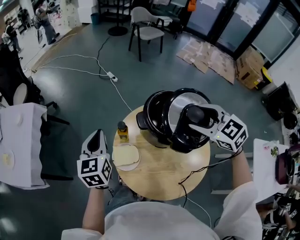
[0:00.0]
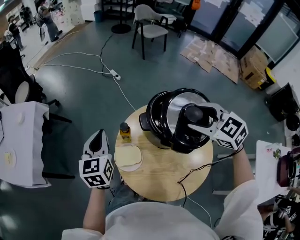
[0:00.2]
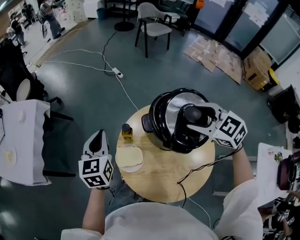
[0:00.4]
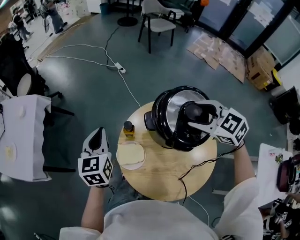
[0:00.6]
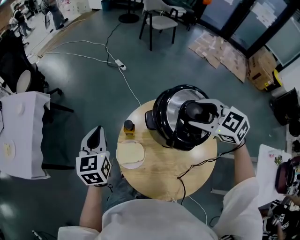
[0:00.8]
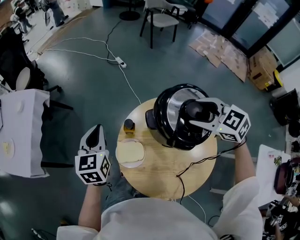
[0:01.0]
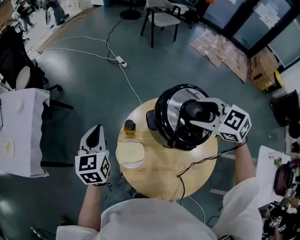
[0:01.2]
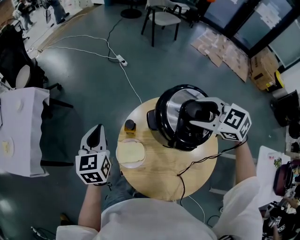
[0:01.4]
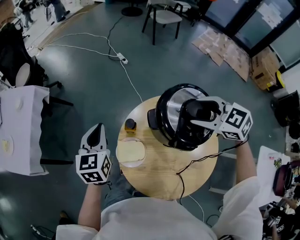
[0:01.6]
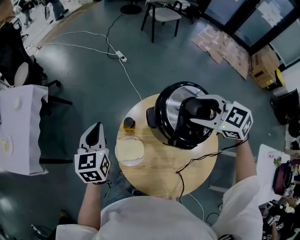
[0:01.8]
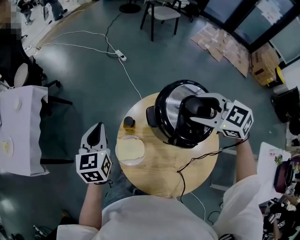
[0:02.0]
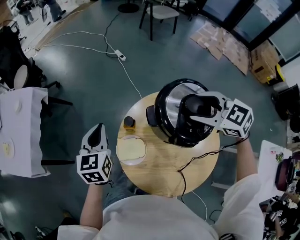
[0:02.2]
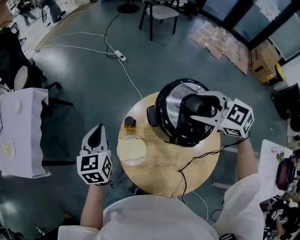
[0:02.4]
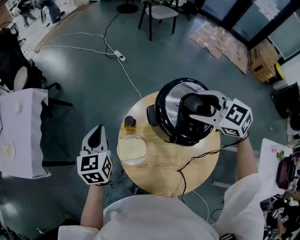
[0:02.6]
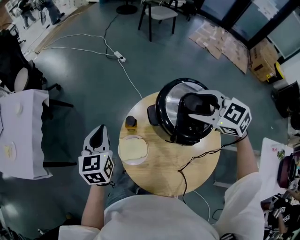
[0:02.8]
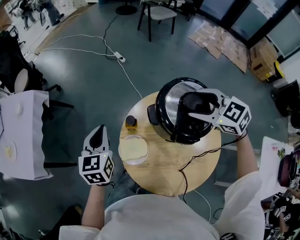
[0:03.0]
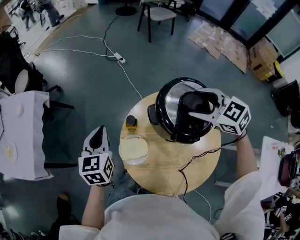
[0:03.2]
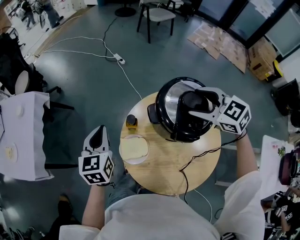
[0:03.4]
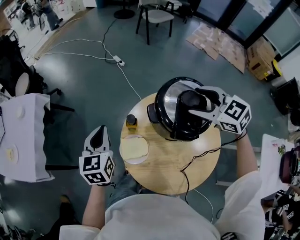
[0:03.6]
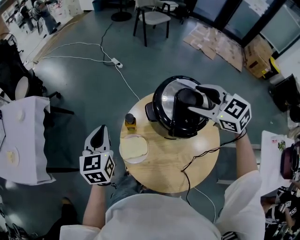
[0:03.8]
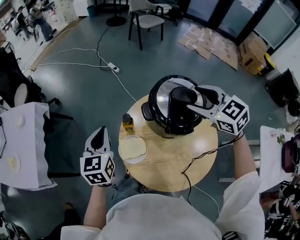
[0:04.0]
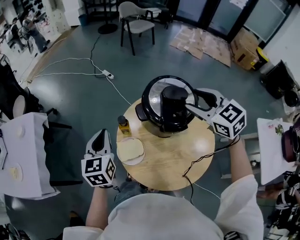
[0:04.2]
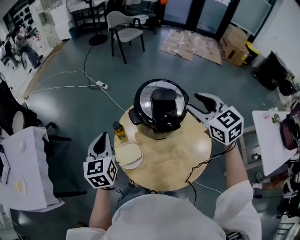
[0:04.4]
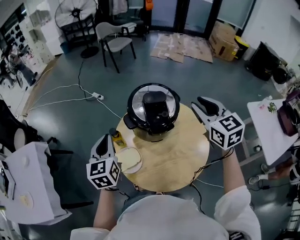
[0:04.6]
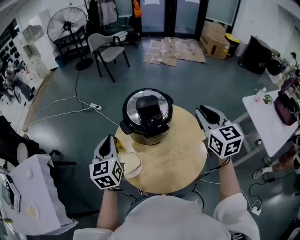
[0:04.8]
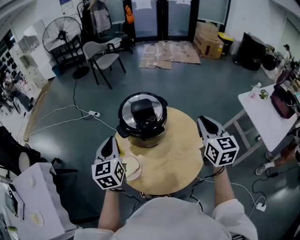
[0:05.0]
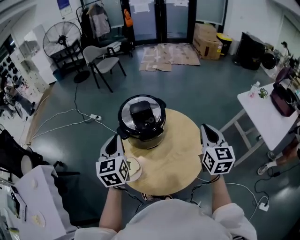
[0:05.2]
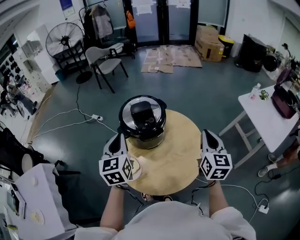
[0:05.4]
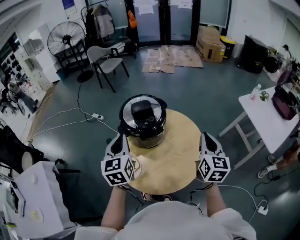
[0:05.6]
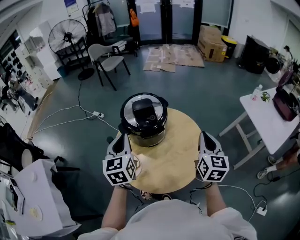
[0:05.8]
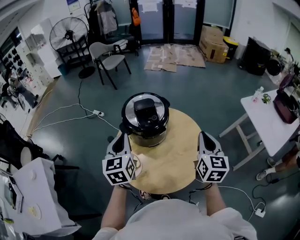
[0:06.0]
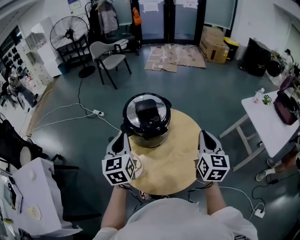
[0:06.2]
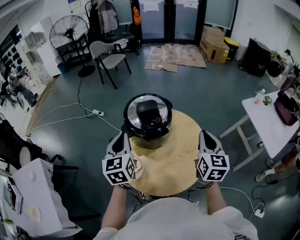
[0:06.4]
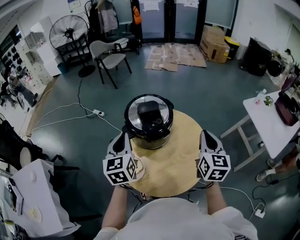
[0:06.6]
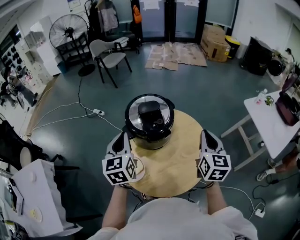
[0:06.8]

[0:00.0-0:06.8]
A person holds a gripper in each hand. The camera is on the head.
0:00.0 to 0:01.4: The right gripper is displaced forward by some 5 cm.
0:01.4 to 0:02.8: The grippers make only small movements.
0:02.8 to 0:04.0: The right gripper moves about 5 cm.
0:04.0 to 0:05.4: The left gripper ends up about 20 cm from where it was, and rotates about 20 degrees. The right gripper ends up some 30 cm from where it was, rotates about 80 degrees, and closes its fingers.
0:05.4 to 0:06.8: The grippers make only small movements.

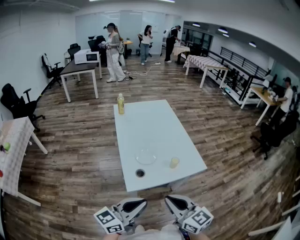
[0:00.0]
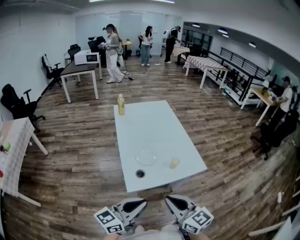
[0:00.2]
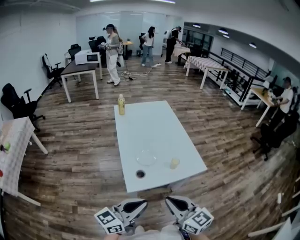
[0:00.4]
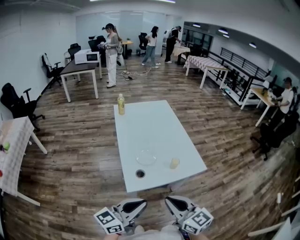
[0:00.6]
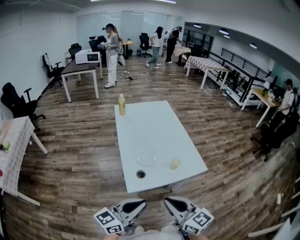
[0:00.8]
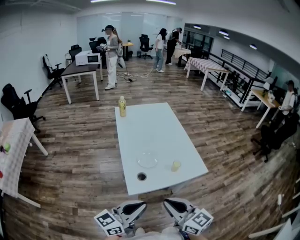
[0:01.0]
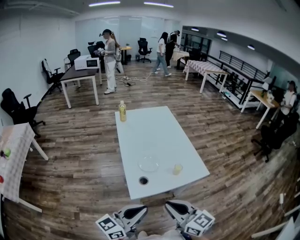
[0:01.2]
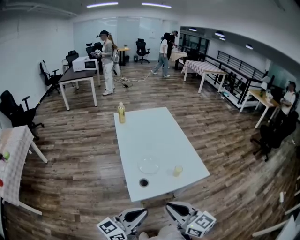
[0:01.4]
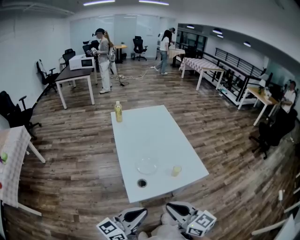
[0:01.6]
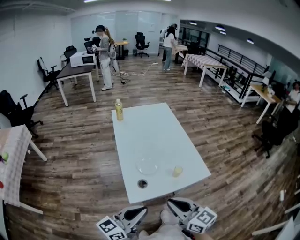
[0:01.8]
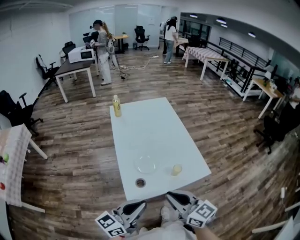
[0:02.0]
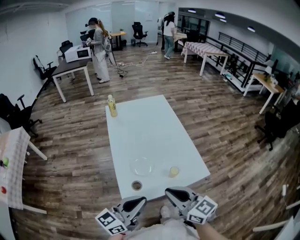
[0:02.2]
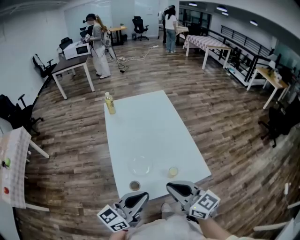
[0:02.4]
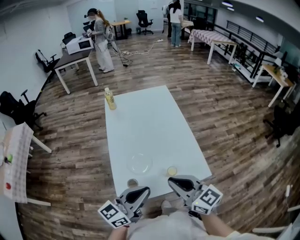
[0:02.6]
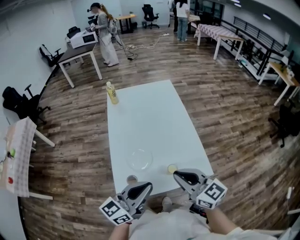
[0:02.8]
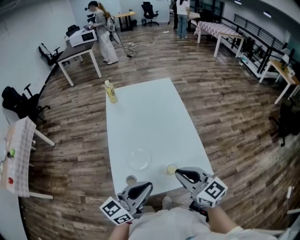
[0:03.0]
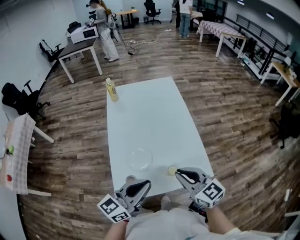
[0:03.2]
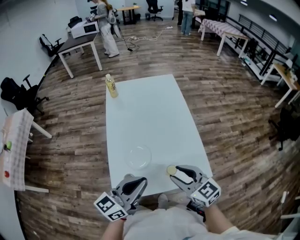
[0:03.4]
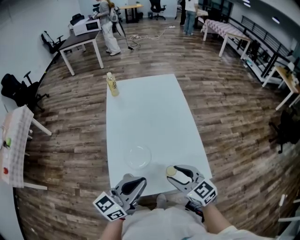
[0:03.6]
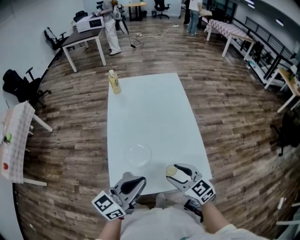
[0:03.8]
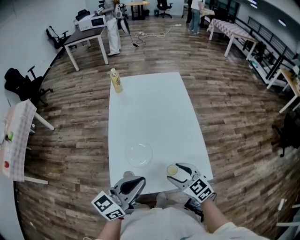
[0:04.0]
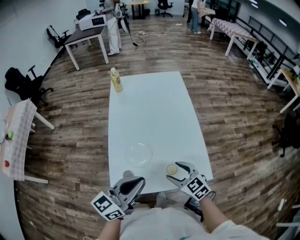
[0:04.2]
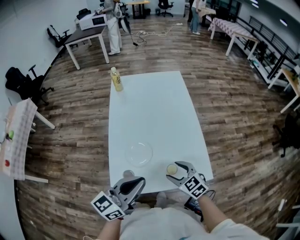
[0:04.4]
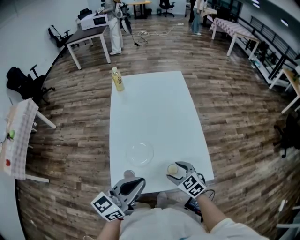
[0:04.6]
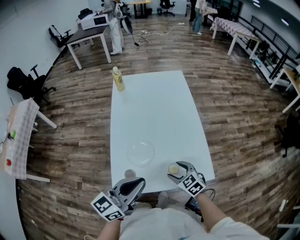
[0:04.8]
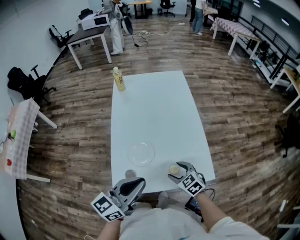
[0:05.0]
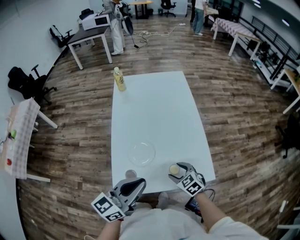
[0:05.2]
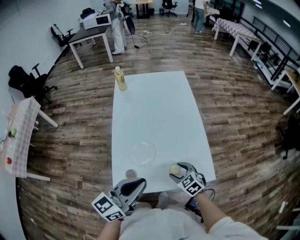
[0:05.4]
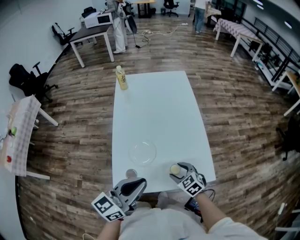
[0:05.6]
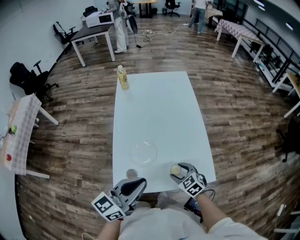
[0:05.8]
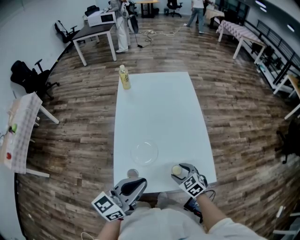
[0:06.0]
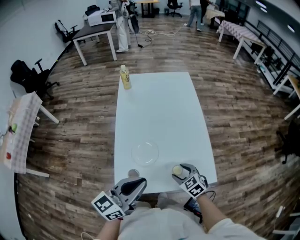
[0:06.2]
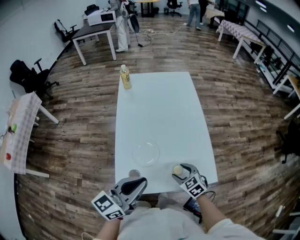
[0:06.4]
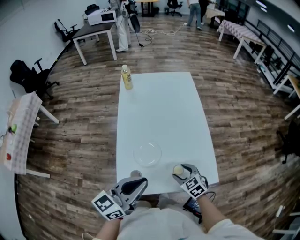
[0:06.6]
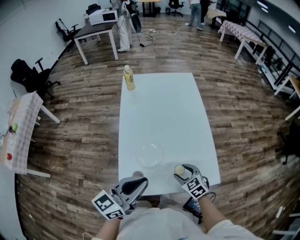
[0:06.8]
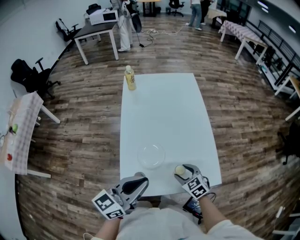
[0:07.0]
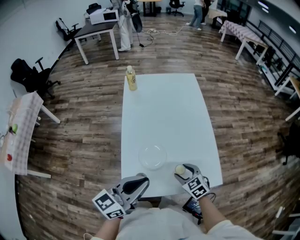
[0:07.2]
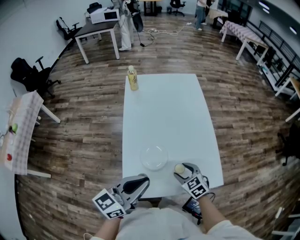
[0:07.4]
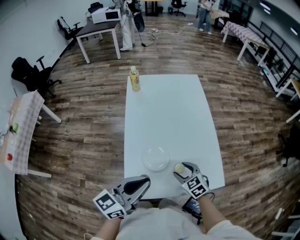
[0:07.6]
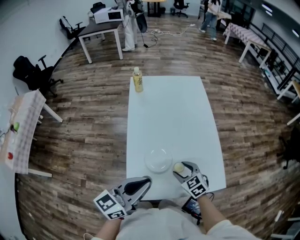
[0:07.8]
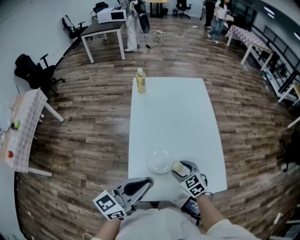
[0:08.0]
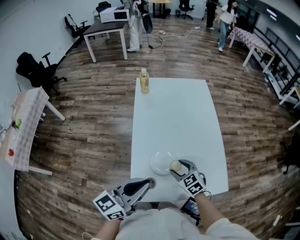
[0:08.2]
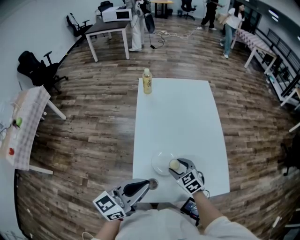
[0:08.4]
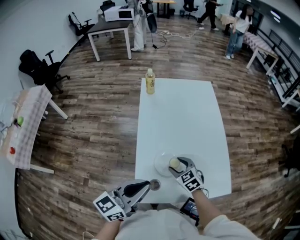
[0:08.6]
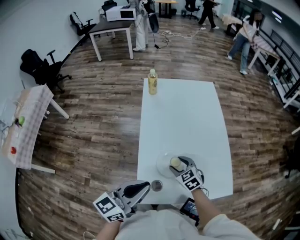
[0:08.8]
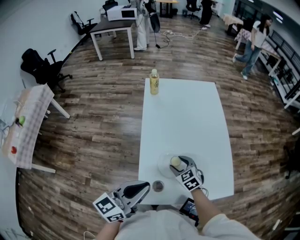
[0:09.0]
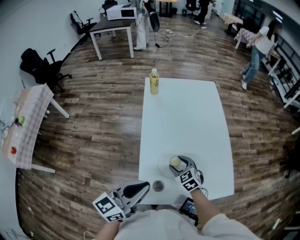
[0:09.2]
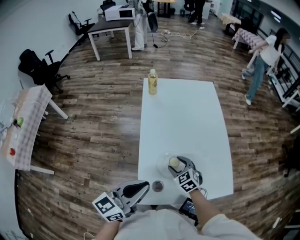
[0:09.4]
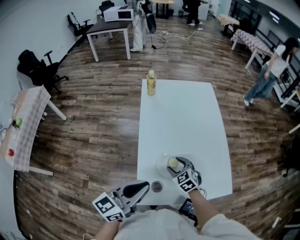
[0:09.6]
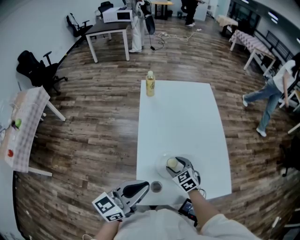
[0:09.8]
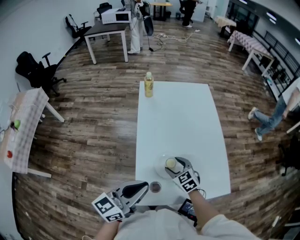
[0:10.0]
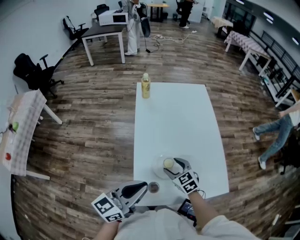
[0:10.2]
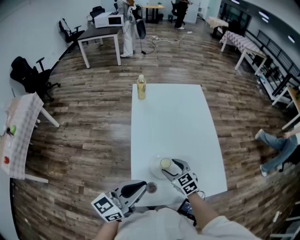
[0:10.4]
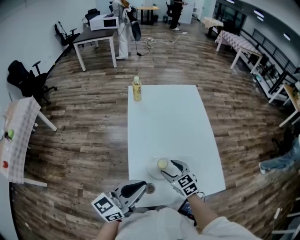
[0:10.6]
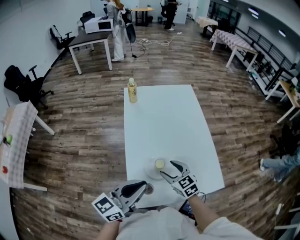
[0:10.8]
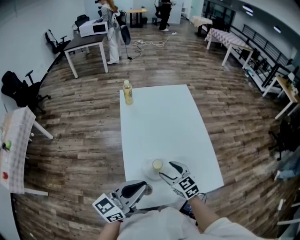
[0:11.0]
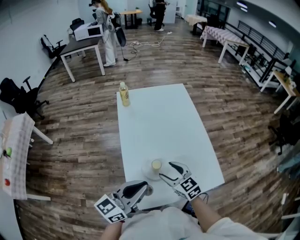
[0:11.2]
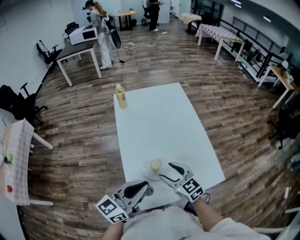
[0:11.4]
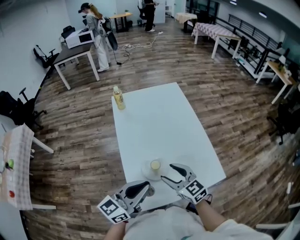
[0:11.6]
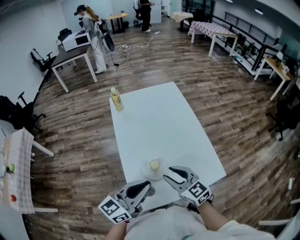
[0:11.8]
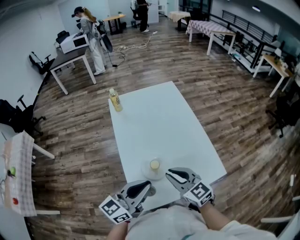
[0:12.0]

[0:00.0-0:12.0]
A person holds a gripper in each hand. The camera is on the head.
0:00.0 to 0:01.6: The grippers stay close to where they were, moving slightly.
0:01.6 to 0:03.0: The grippers both shift forward and to the right by approximately 25 cm.
0:03.0 to 0:04.4: The right gripper travels downward by about 15 cm, rotates approximately 30 degrees, and opens up.
0:04.4 to 0:06.0: The right gripper travels downward by roughly 5 cm.
0:06.0 to 0:07.6: Both grippers travel together to the left, roughly 5 cm.
0:07.6 to 0:09.0: The right gripper goes about 10 cm to the left and forward; the left gripper heads to the left, covering approximately 5 cm.
0:09.0 to 0:10.4: There are only small adjustments of the grippers.
0:10.4 to 0:12.0: The right gripper goes approximately 15 cm upward and backward, turns by approximately 20 degrees, and closes.

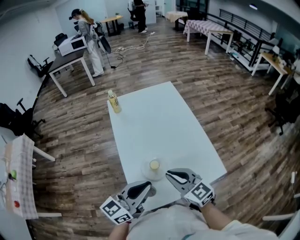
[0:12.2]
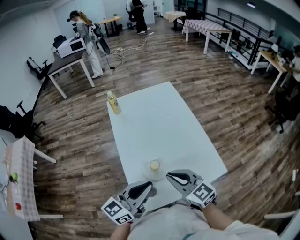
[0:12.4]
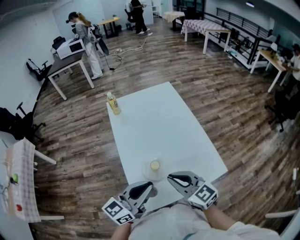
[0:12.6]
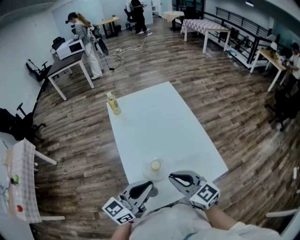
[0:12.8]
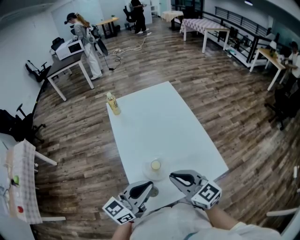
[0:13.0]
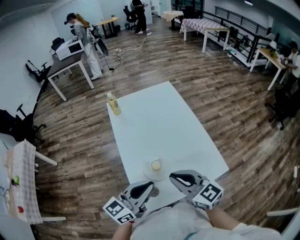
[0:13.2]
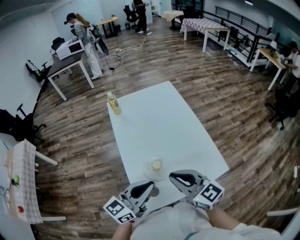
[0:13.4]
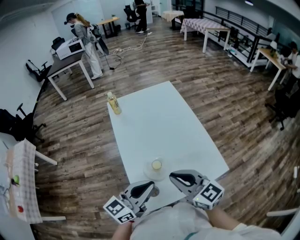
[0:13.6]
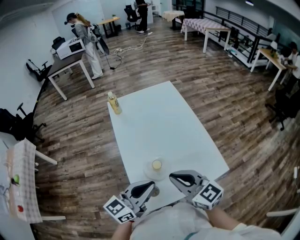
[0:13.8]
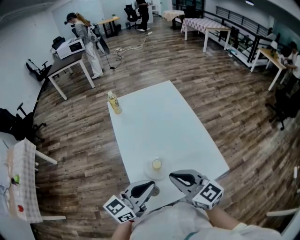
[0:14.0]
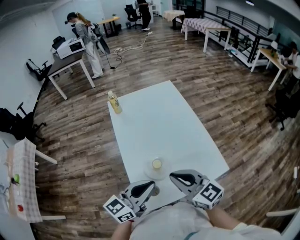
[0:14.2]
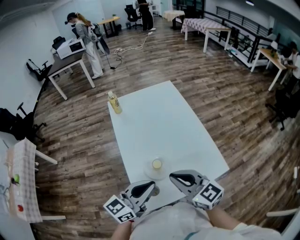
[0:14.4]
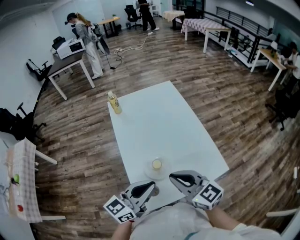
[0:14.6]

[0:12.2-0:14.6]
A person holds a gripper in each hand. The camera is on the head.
0:12.2 to 0:13.4: The right gripper changes place by about 5 cm.
0:13.4 to 0:14.6: The two grippers keep their place.

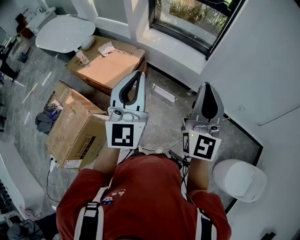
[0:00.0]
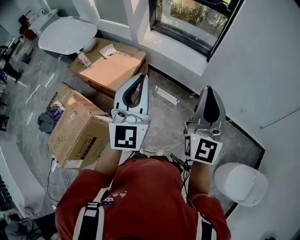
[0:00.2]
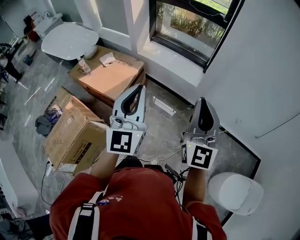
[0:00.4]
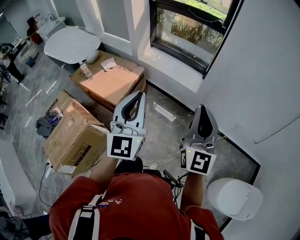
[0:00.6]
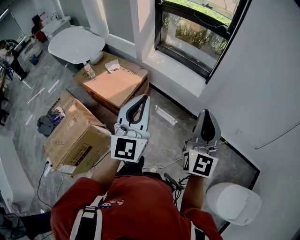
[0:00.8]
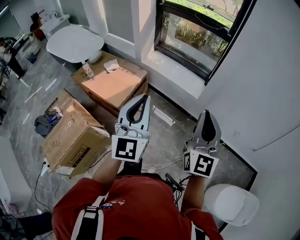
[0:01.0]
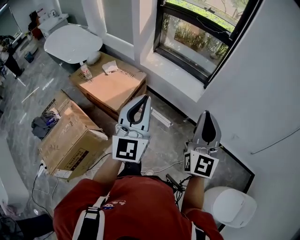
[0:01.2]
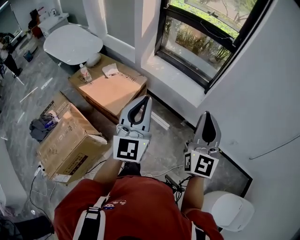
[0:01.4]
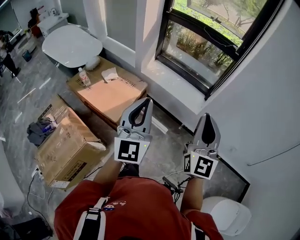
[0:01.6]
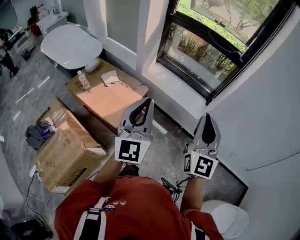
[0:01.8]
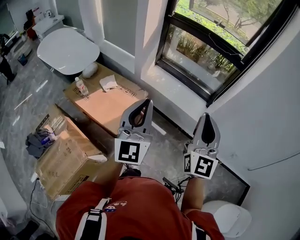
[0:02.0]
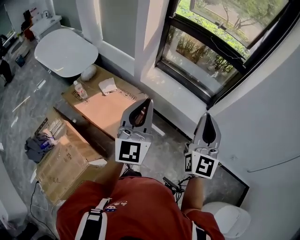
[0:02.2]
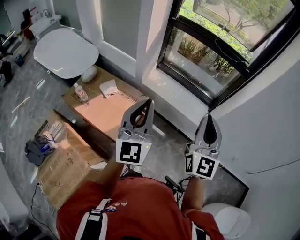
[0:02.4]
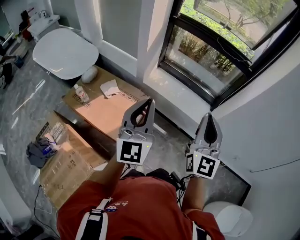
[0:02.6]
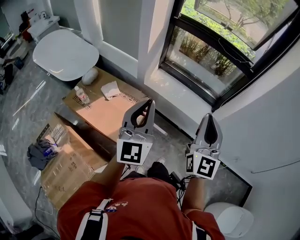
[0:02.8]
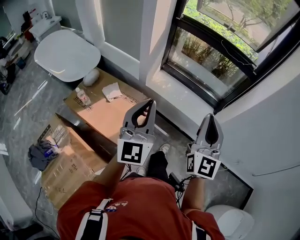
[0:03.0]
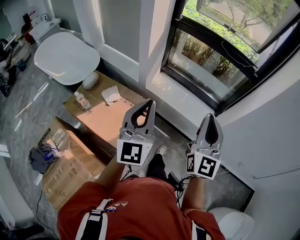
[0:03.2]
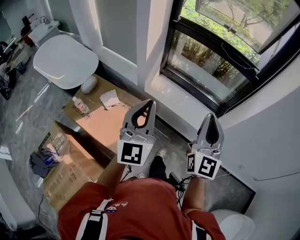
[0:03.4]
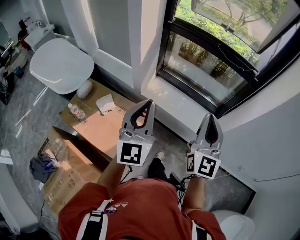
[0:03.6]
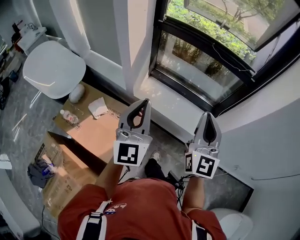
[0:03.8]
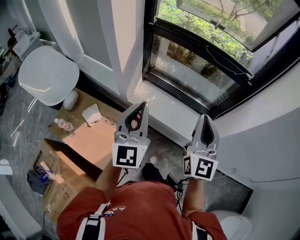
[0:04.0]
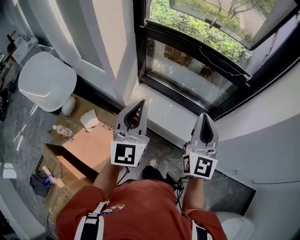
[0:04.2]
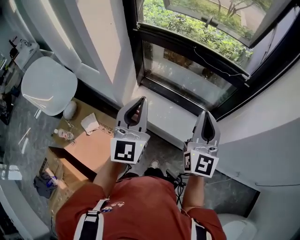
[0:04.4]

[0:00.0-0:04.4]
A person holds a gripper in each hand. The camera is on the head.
0:00.0 to 0:01.4: Both grippers travel together forward, roughly 5 cm.
0:01.4 to 0:03.0: Both grippers travel together forward and to the left, some 25 cm.
0:03.0 to 0:04.4: The grippers both shift forward and to the right by approximately 30 cm.
